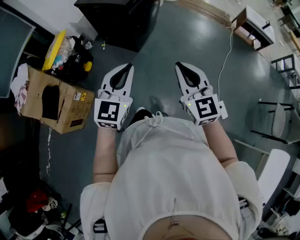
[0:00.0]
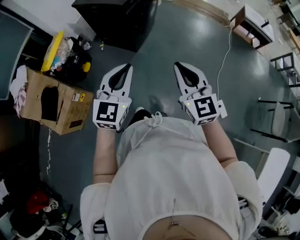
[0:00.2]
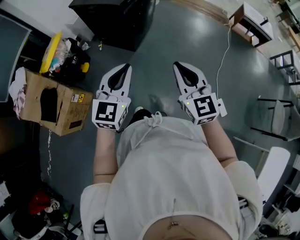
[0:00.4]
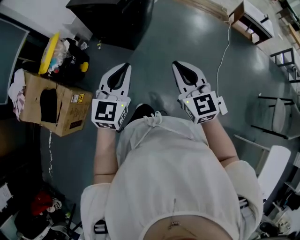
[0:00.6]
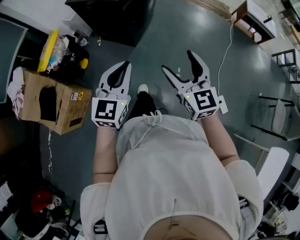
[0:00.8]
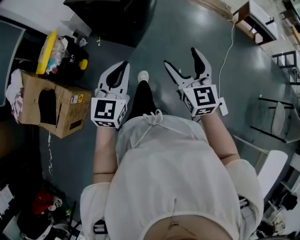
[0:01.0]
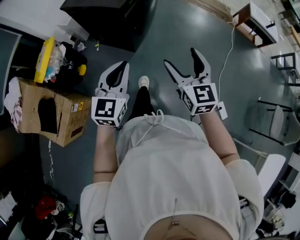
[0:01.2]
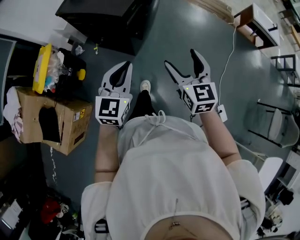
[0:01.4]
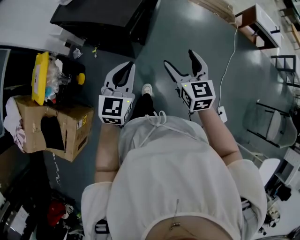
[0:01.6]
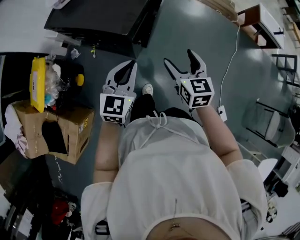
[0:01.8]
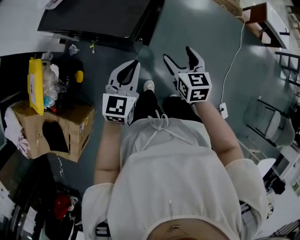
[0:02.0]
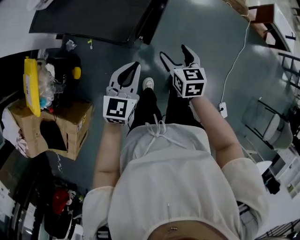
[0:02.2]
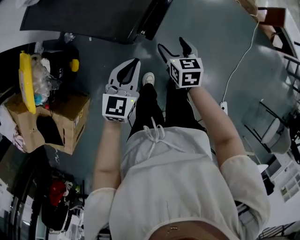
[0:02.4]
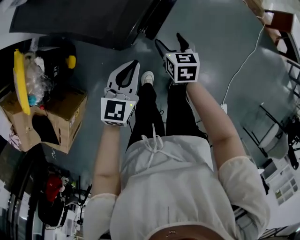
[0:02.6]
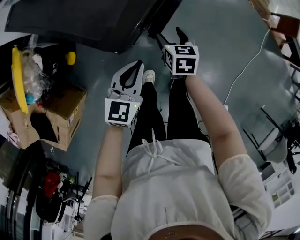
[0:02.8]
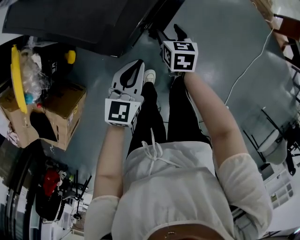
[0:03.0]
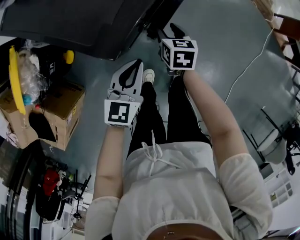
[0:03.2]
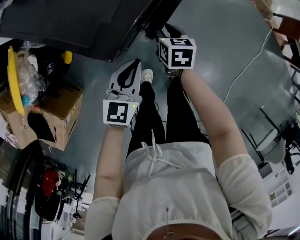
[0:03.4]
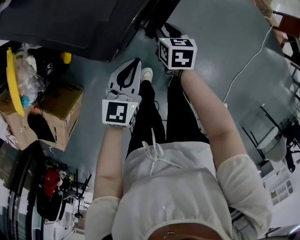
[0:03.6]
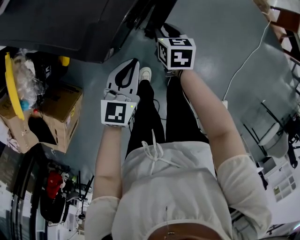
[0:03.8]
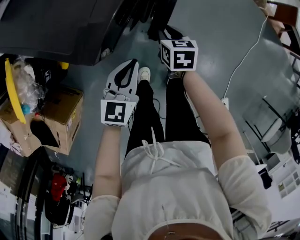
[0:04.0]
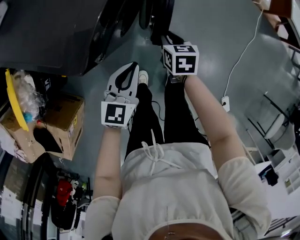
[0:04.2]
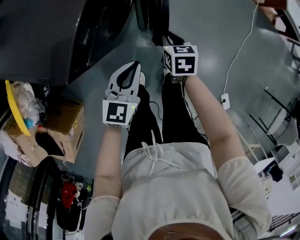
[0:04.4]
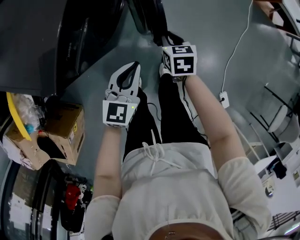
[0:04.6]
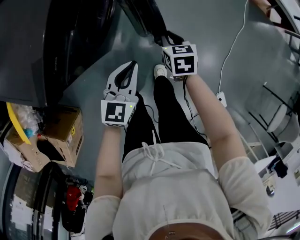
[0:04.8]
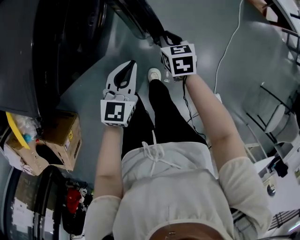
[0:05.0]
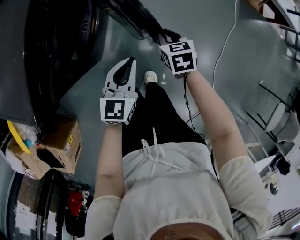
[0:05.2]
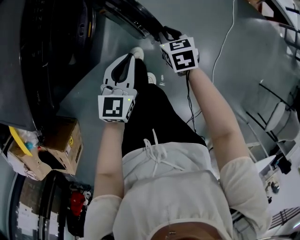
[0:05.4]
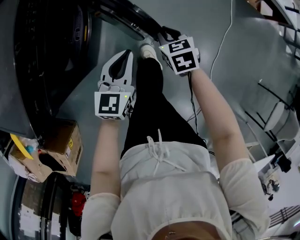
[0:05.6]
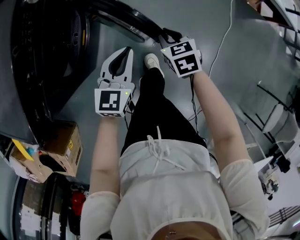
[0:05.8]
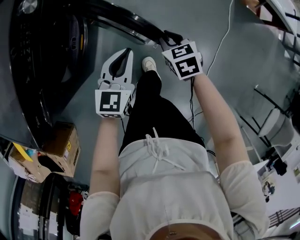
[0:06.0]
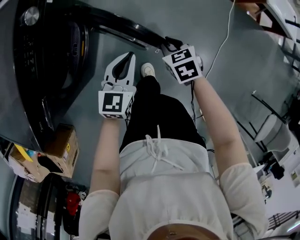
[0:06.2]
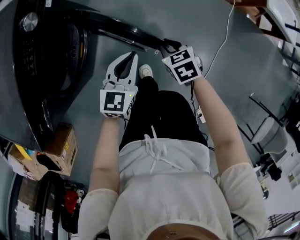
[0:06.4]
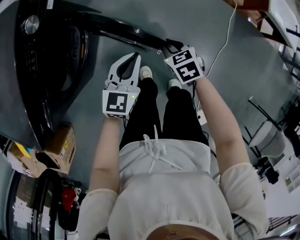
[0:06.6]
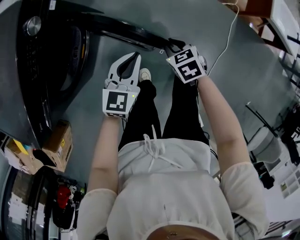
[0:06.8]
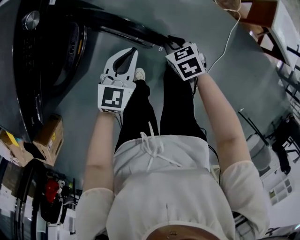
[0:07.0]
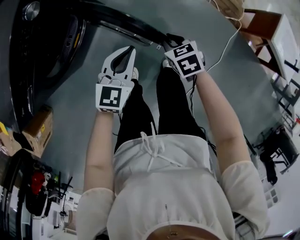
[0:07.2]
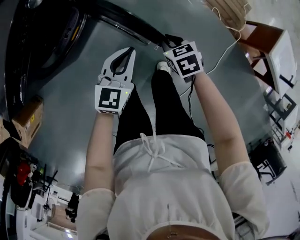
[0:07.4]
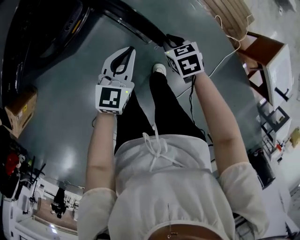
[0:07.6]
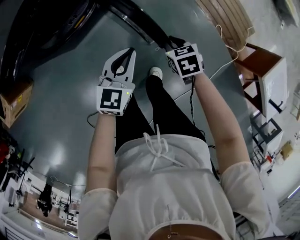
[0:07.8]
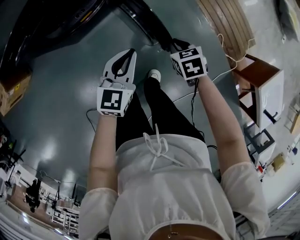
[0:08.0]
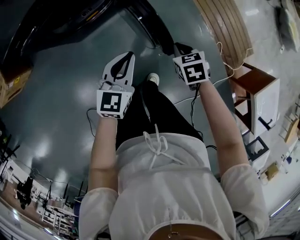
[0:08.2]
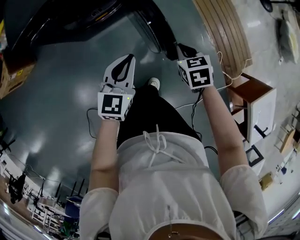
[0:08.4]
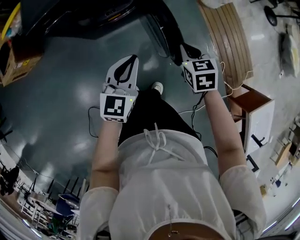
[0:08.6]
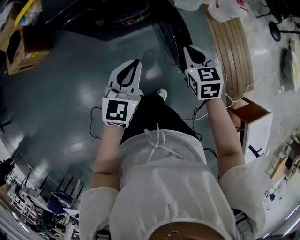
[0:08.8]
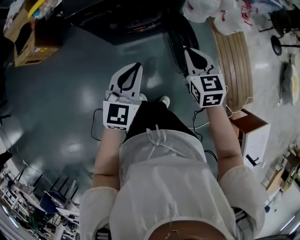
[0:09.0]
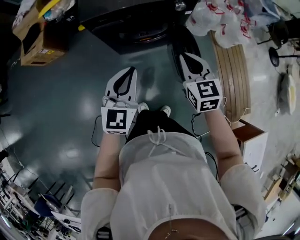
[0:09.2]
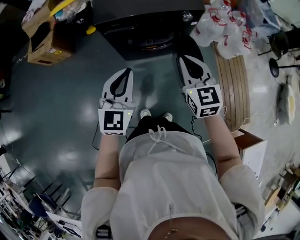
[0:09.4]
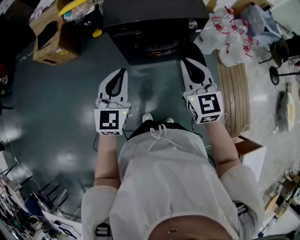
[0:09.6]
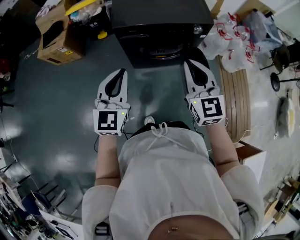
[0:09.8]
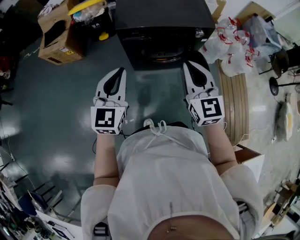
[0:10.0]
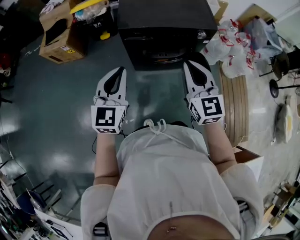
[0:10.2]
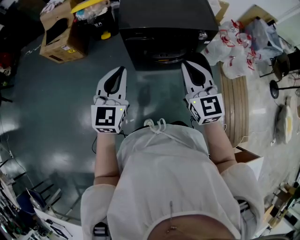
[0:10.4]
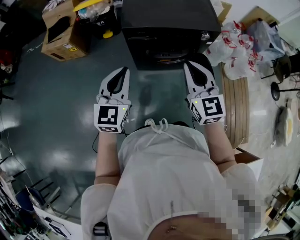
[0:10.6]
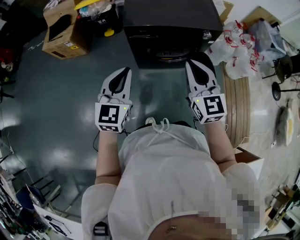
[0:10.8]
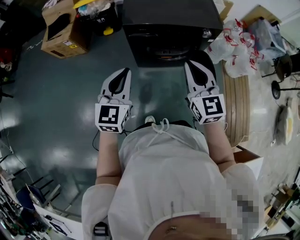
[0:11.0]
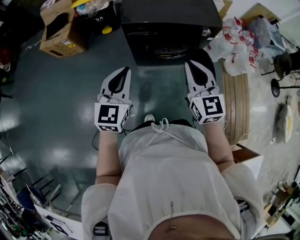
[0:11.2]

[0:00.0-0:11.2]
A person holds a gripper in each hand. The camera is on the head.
0:00.0 to 0:01.6: The two grippers go some 35 cm forward. The right gripper changes its angle by some 20 degrees, and opens up.
0:01.6 to 0:03.2: The grippers both shift downward and forward by roughly 40 cm. The right gripper turns by approximately 30 degrees, and closes up.
0:03.2 to 0:04.8: Both grippers move to the right, some 25 cm. The right gripper closes its fingers.
0:04.8 to 0:06.4: The left gripper travels forward and to the right by some 30 cm, while the right gripper shifts some 25 cm to the right and forward.
0:06.4 to 0:08.0: The right gripper shifts by some 10 cm, and turns by approximately 30 degrees; the left gripper shifts by approximately 5 cm, and changes its angle by some 40 degrees.
0:08.0 to 0:09.6: The right gripper travels upward by about 40 cm, and tilts its fingers some 50 degrees upward, while the left gripper moves roughly 50 cm, and changes its angle by about 40 degrees.
0:09.6 to 0:11.2: Both grippers move to the left, some 5 cm.

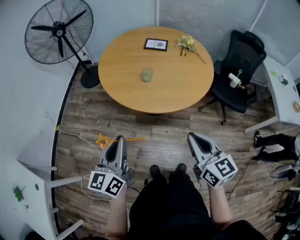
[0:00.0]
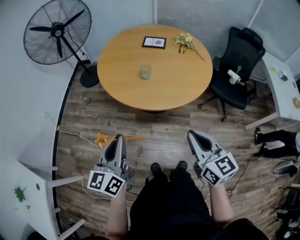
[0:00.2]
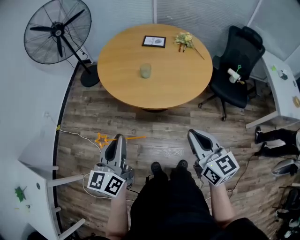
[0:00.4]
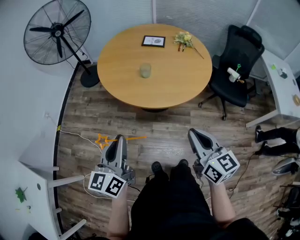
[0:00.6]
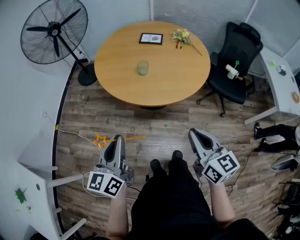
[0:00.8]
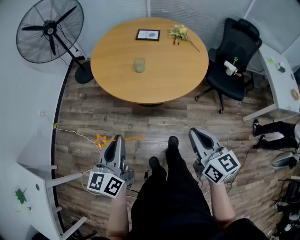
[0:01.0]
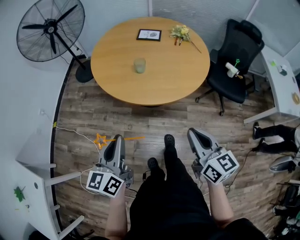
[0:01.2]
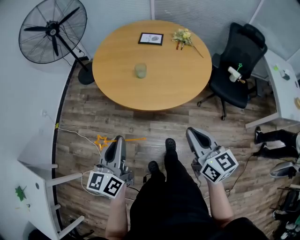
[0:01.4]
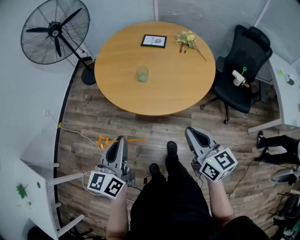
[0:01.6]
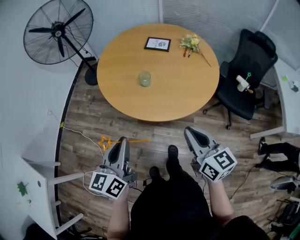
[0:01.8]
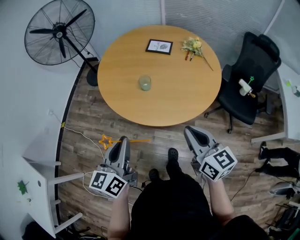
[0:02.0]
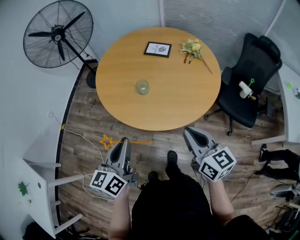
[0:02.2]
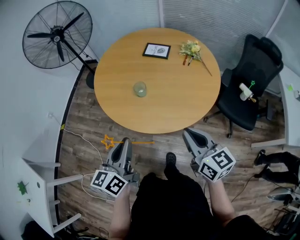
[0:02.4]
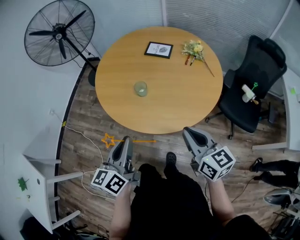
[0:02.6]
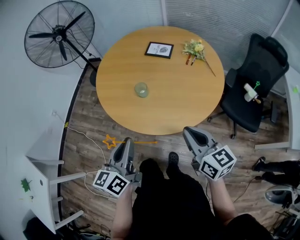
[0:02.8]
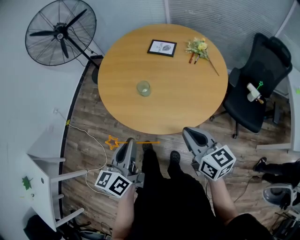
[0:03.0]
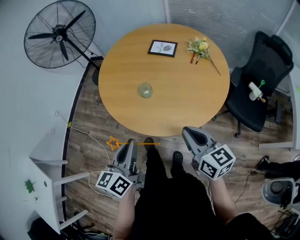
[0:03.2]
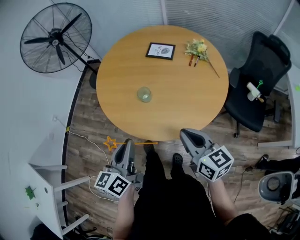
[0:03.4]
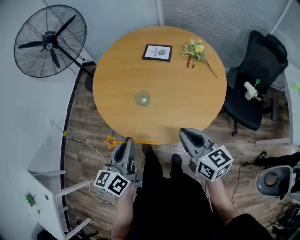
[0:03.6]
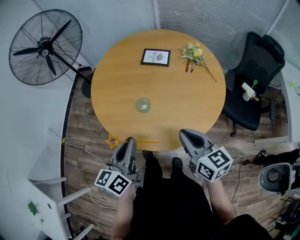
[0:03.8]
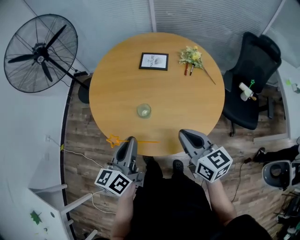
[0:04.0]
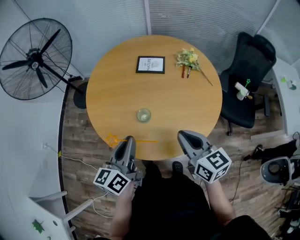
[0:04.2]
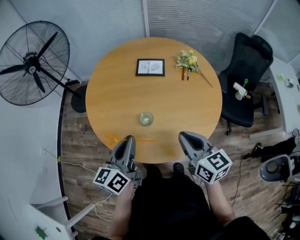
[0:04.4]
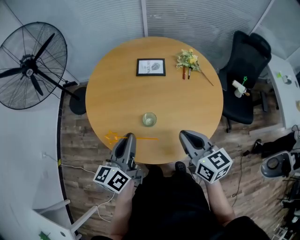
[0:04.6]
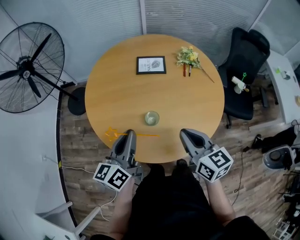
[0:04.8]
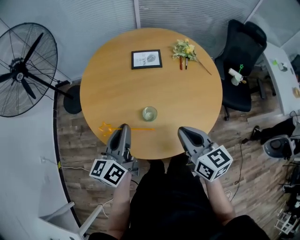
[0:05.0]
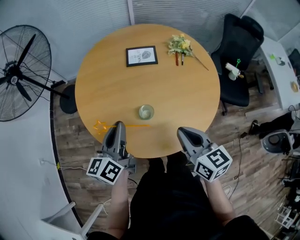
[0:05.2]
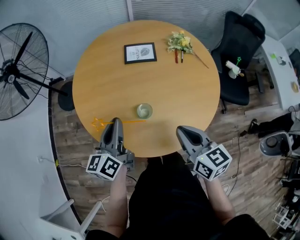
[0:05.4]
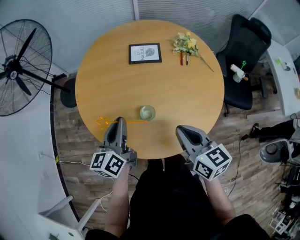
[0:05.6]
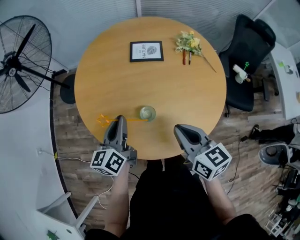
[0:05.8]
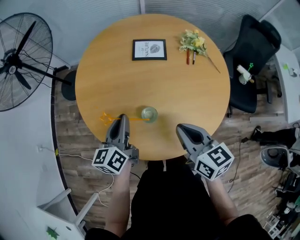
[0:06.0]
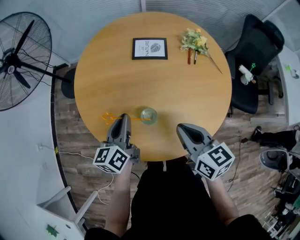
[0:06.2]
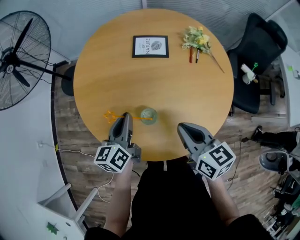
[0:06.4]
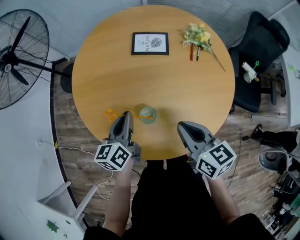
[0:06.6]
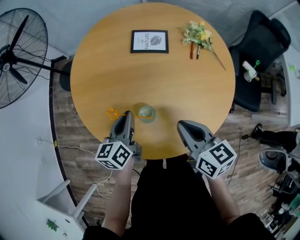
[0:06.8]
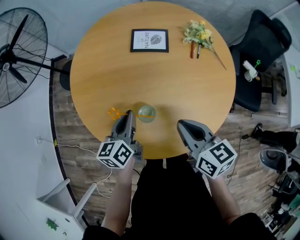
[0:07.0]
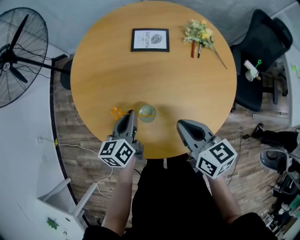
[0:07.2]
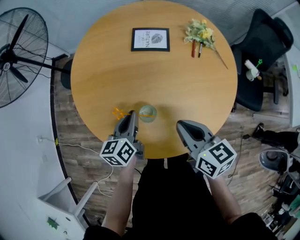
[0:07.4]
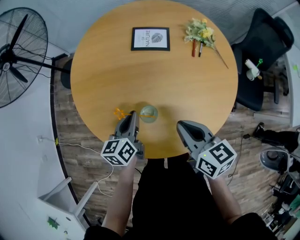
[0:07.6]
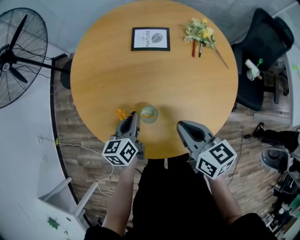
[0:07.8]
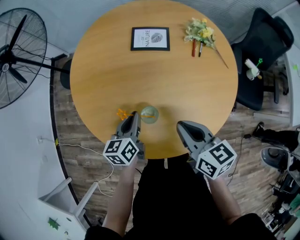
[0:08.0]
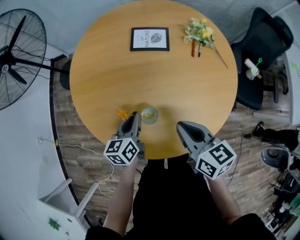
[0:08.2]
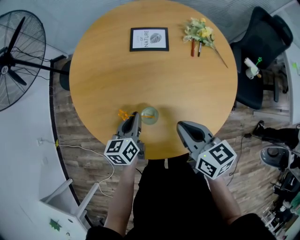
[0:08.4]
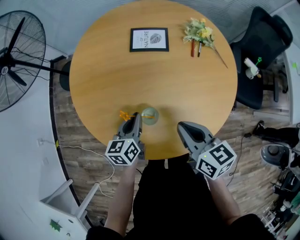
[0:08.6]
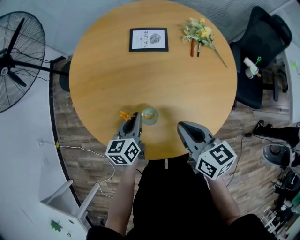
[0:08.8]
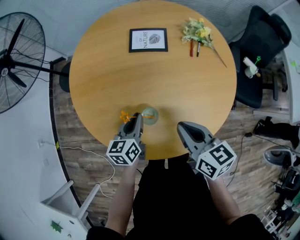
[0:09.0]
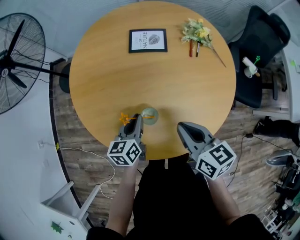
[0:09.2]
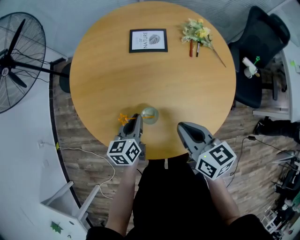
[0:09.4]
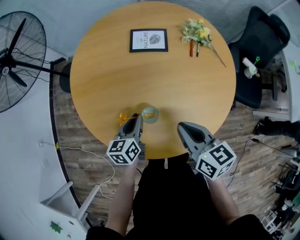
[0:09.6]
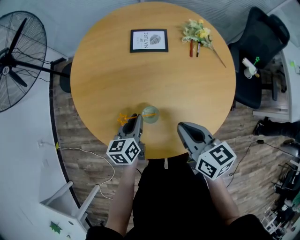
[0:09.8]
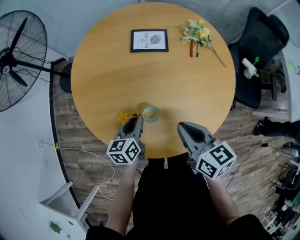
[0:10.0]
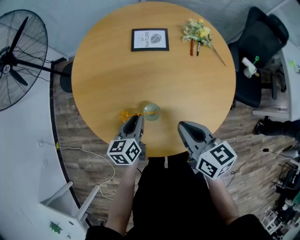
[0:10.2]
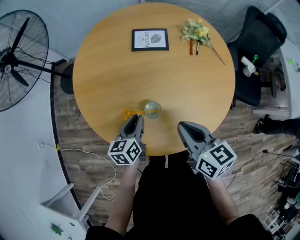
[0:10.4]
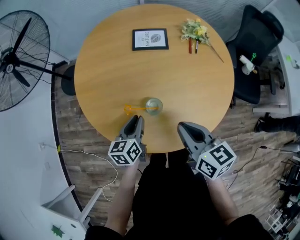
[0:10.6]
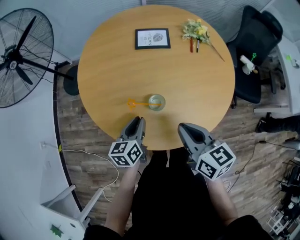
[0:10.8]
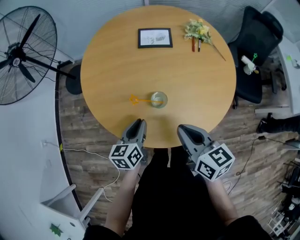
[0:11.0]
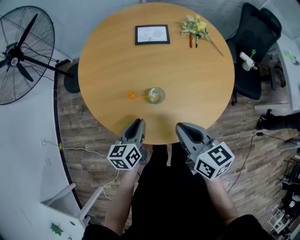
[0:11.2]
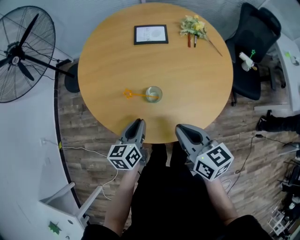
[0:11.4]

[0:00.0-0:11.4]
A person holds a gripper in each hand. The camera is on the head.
0:00.0 to 0:01.4: The grippers stay close to where they were, moving slightly.
0:01.4 to 0:02.8: Both grippers travel together forward and to the right, roughly 15 cm.
0:02.8 to 0:04.2: The right gripper heads forward and to the left, covering about 15 cm; the left gripper is displaced forward by some 20 cm.
0:04.2 to 0:05.6: The right gripper goes some 10 cm forward and downward. The left gripper moves forward, downward and to the left, about 15 cm.
0:05.6 to 0:07.2: The left gripper shifts some 5 cm downward.
0:07.2 to 0:08.6: The grippers move only a little.
0:08.6 to 0:10.0: Both grippers stay put.
0:10.0 to 0:11.4: Both grippers travel together backward, roughly 10 cm.

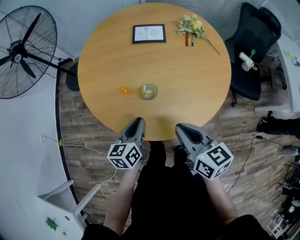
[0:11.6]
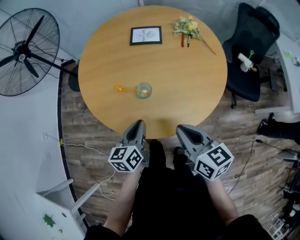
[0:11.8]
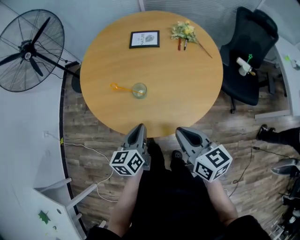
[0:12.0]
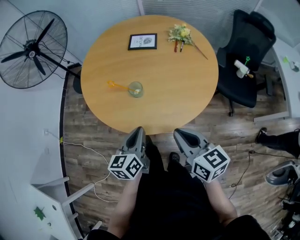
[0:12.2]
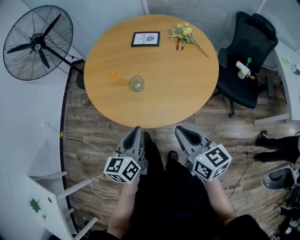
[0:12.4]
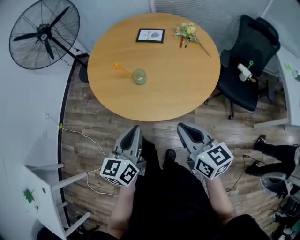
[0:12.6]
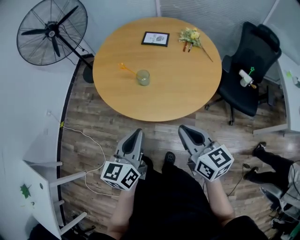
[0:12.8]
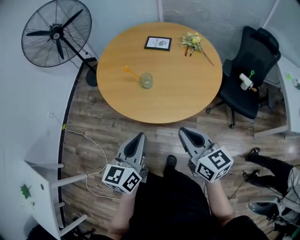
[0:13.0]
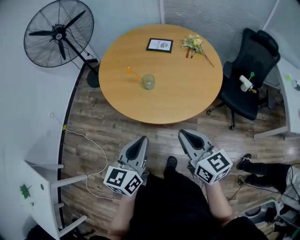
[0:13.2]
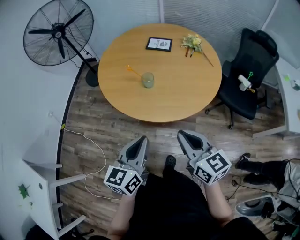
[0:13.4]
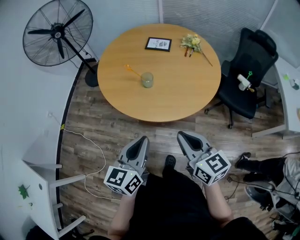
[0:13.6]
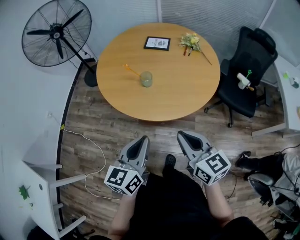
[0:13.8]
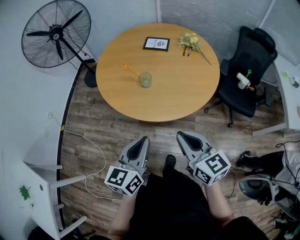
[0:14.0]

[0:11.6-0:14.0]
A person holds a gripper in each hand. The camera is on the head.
0:11.6 to 0:12.8: The left gripper is displaced backward and upward by about 25 cm; the right gripper moves backward and to the right, some 15 cm.
0:12.8 to 0:14.0: The grippers move only a little.
